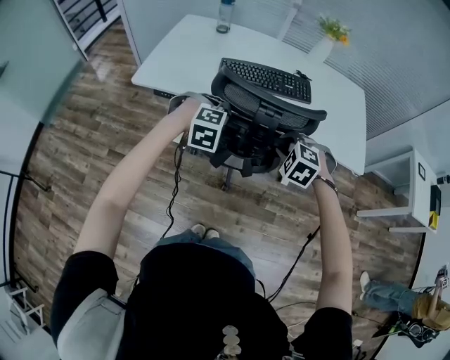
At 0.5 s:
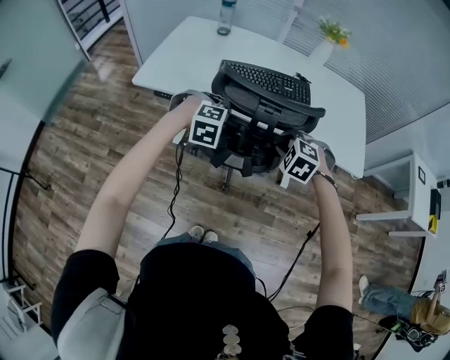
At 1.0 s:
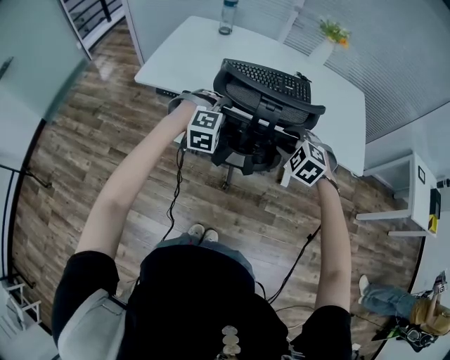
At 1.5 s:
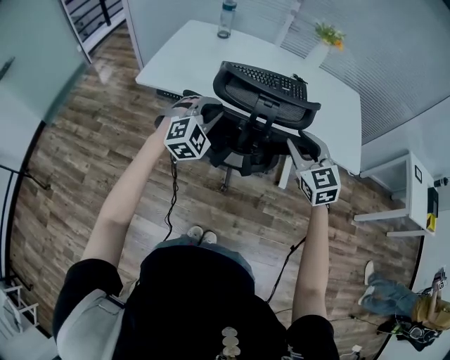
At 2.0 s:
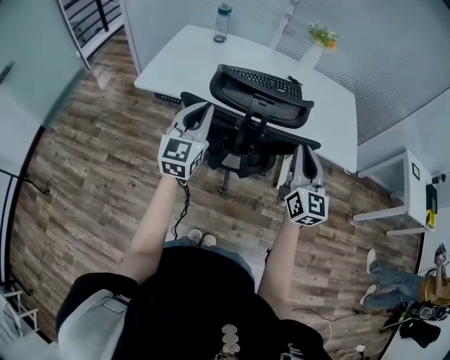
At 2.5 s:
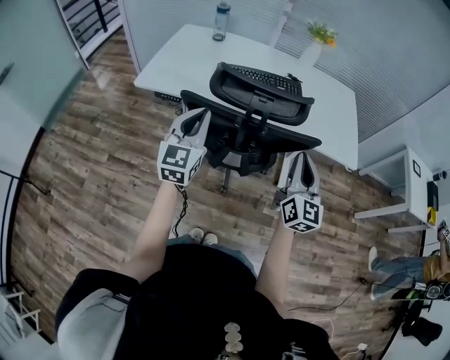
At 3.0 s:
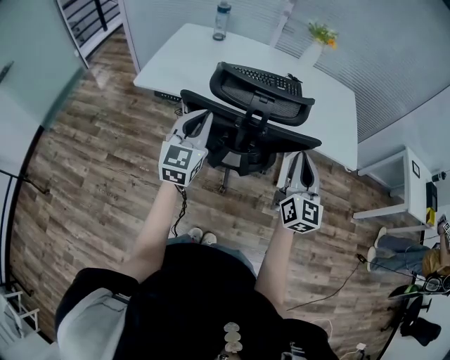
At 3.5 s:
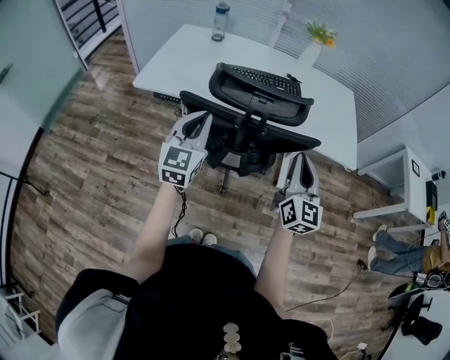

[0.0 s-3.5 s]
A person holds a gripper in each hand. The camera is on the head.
0.0 to 2.0 s: The left gripper heads upward, covering some 15 cm, and tilts its fingers roughly 60 degrees upward, while the right gripper shifts roughly 15 cm upward and backward, angles its fingers upward, by roughly 70 degrees, and opens, then closes again.
2.0 to 3.5 s: The grippers make only small movements.

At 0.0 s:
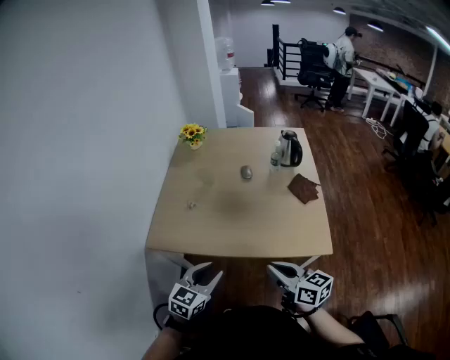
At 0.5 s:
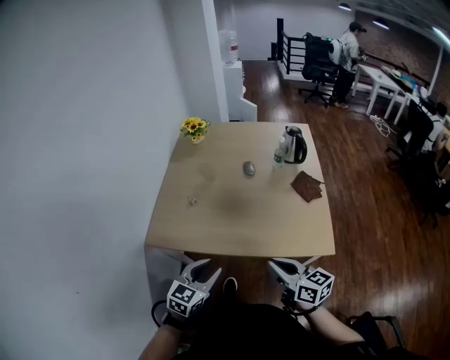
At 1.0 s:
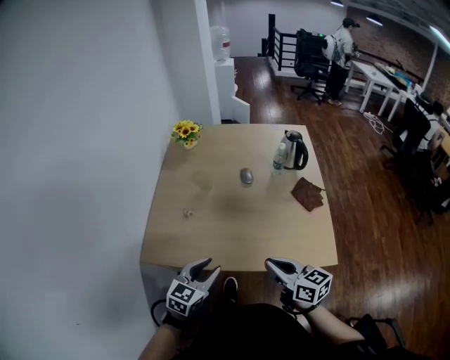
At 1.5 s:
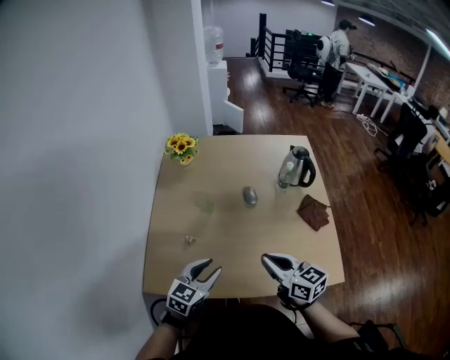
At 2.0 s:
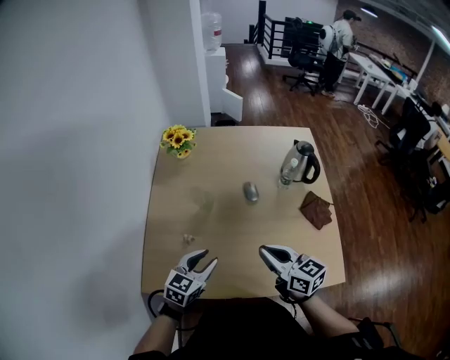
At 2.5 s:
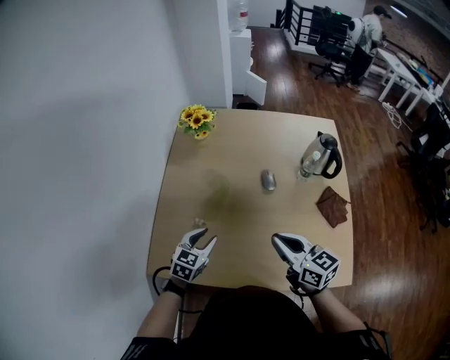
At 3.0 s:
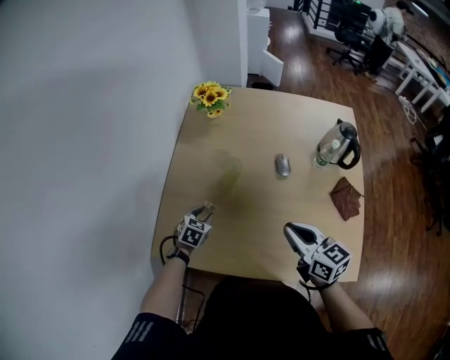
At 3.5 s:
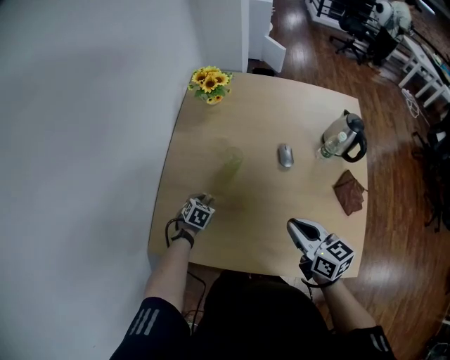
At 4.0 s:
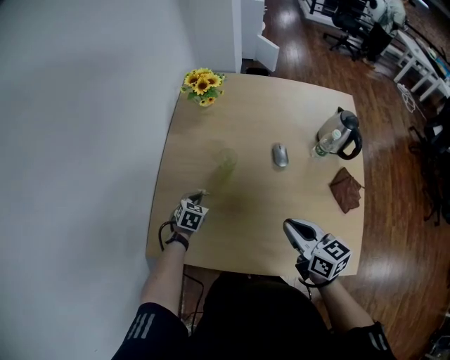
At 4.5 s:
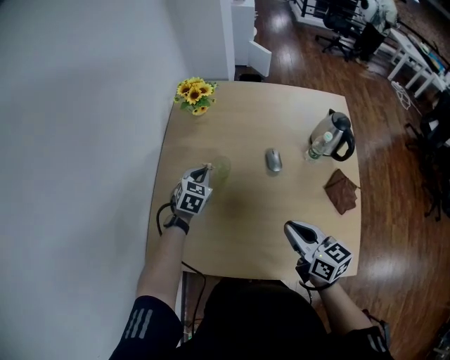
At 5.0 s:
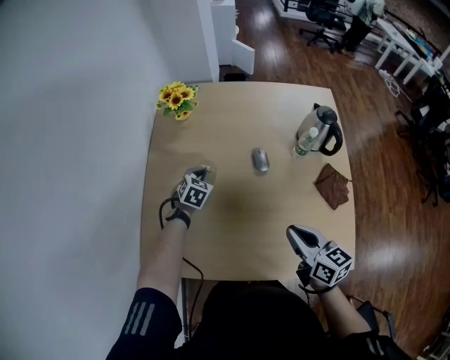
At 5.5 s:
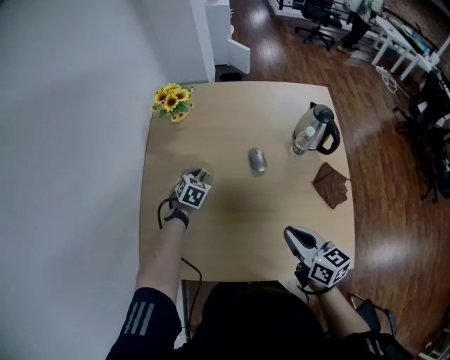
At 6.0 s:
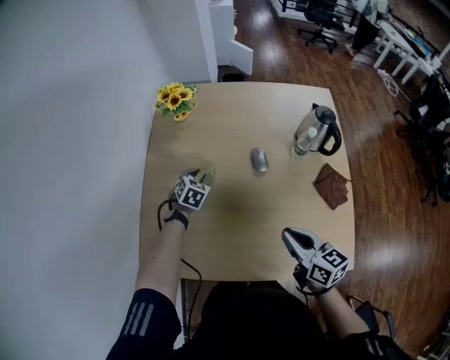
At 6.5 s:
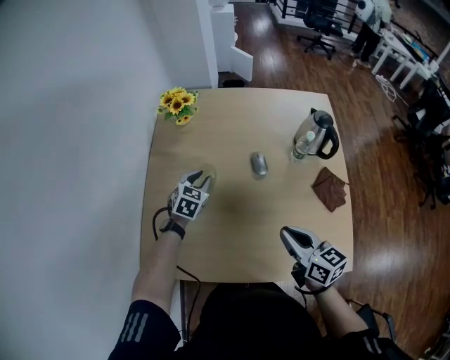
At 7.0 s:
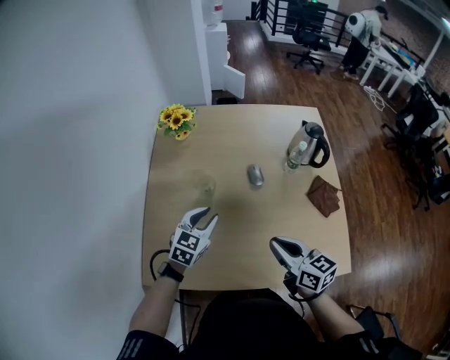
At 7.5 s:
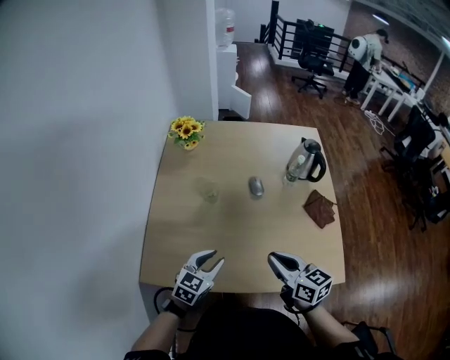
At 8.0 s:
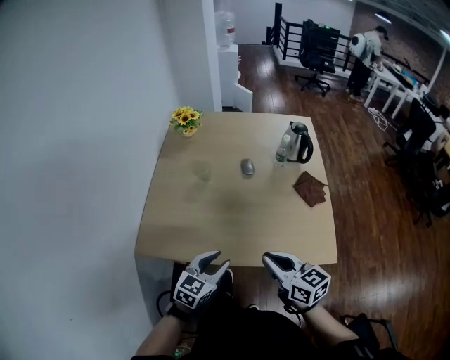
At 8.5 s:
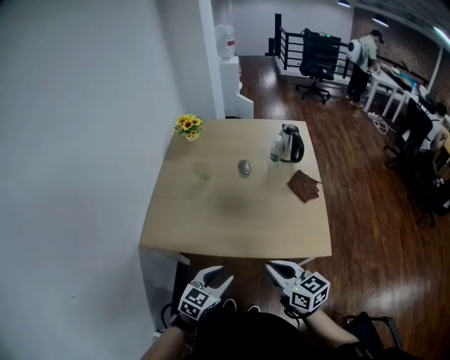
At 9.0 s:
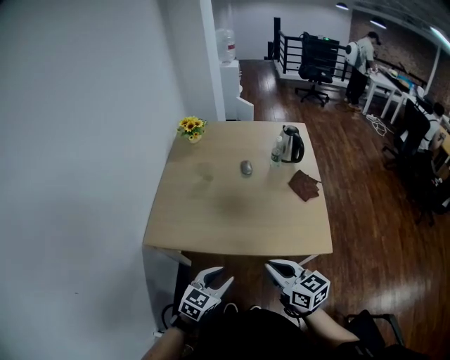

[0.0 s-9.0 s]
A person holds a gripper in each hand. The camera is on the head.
0.0 to 2.0 s: Both grippers move forward, about 30 cm.
2.0 to 4.5 s: The left gripper goes roughly 25 cm forward, swivels approximately 30 degrees, and closes, while the right gripper moves about 5 cm.
4.5 to 7.0 s: The left gripper travels backward, upward and to the right by about 15 cm, and opens.
7.0 to 9.0 s: Both grippers move backward, roughly 35 cm.

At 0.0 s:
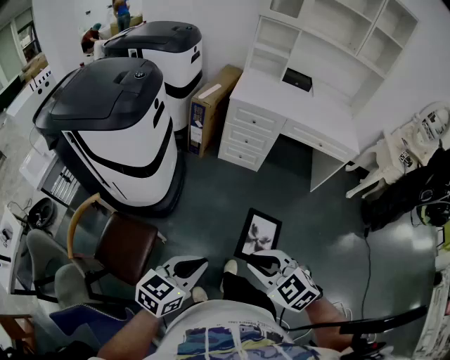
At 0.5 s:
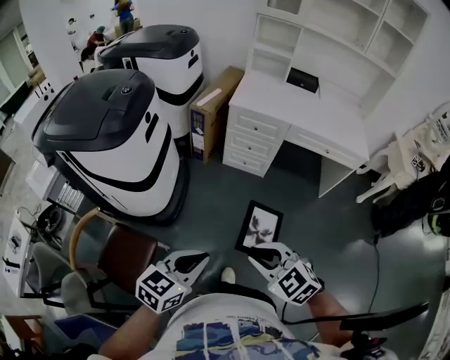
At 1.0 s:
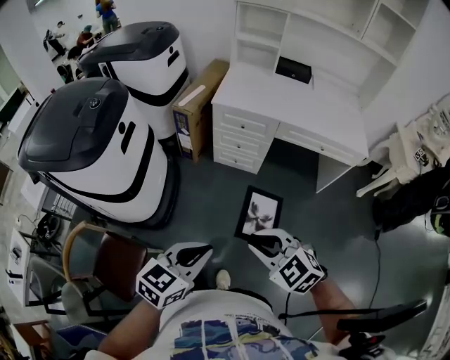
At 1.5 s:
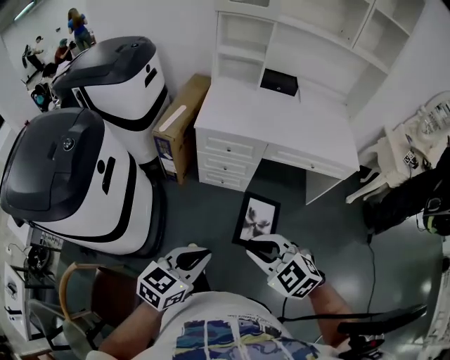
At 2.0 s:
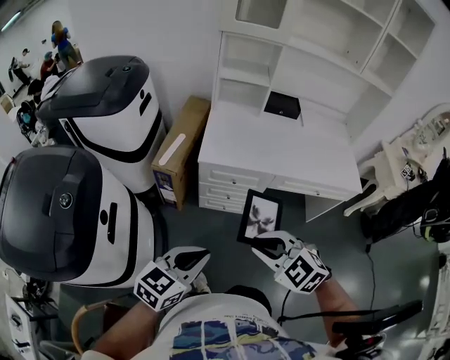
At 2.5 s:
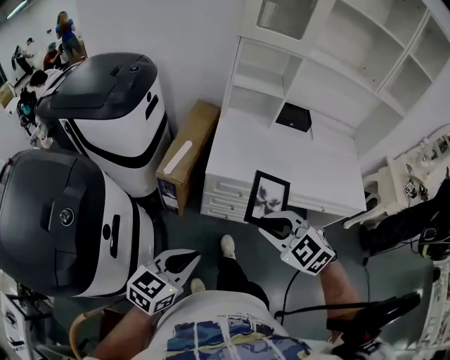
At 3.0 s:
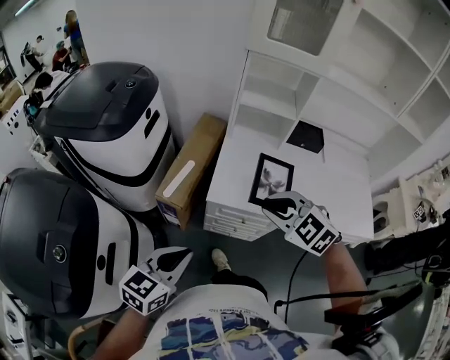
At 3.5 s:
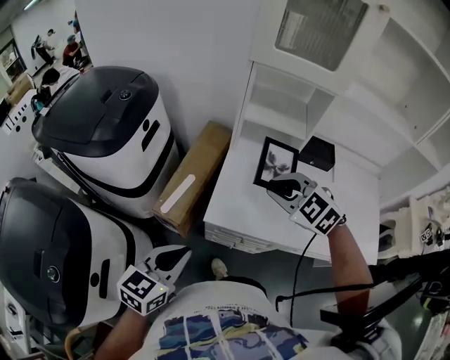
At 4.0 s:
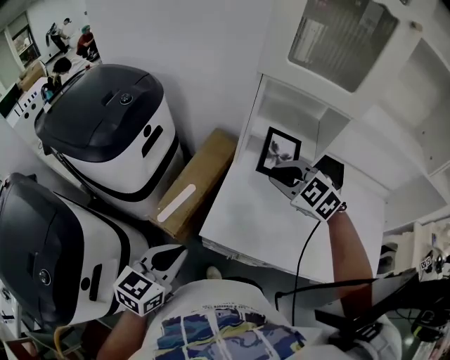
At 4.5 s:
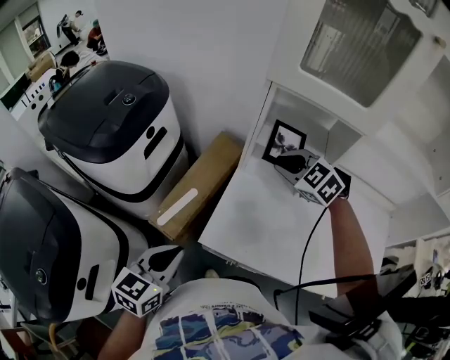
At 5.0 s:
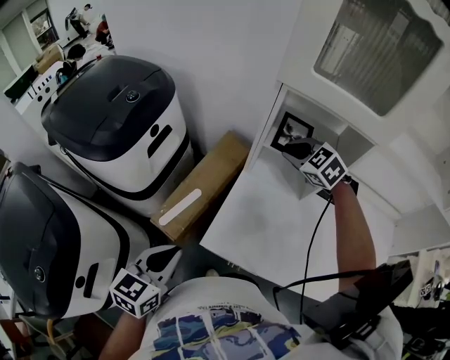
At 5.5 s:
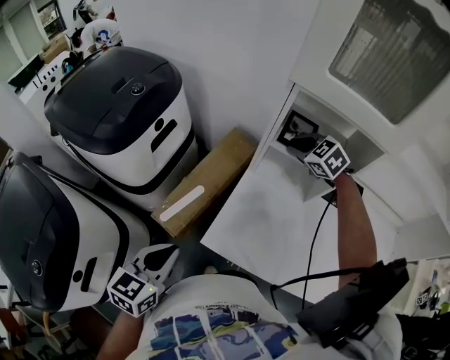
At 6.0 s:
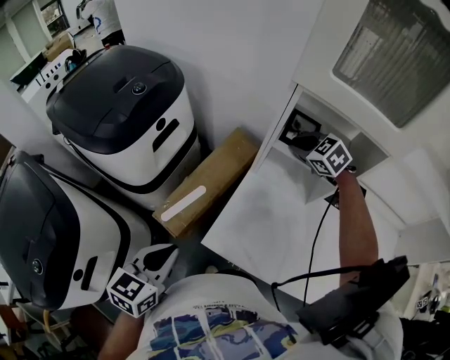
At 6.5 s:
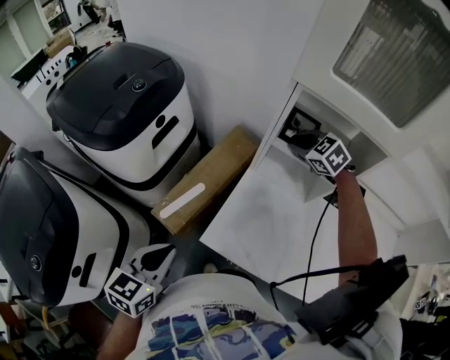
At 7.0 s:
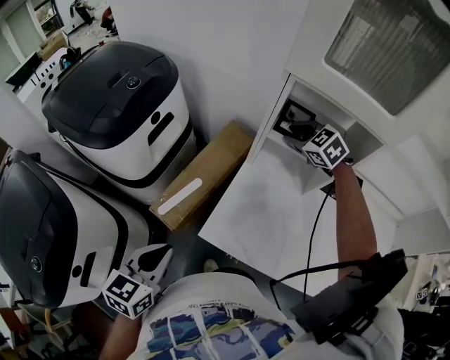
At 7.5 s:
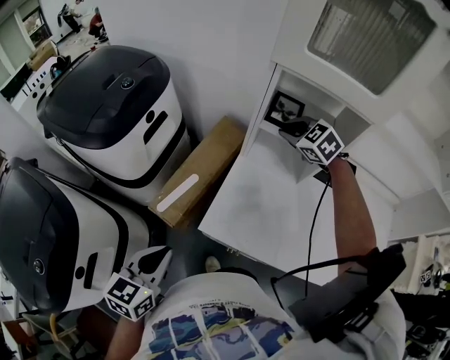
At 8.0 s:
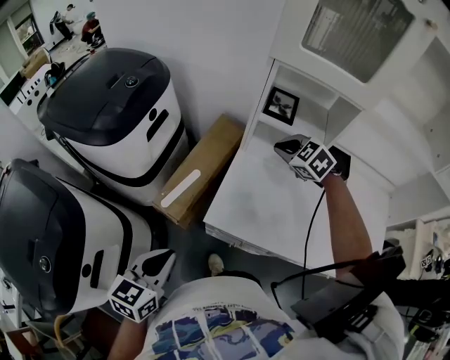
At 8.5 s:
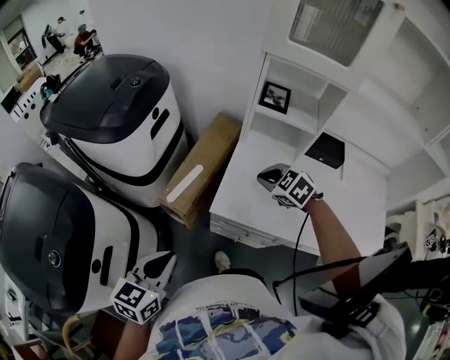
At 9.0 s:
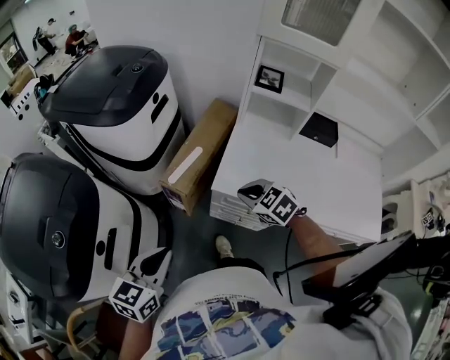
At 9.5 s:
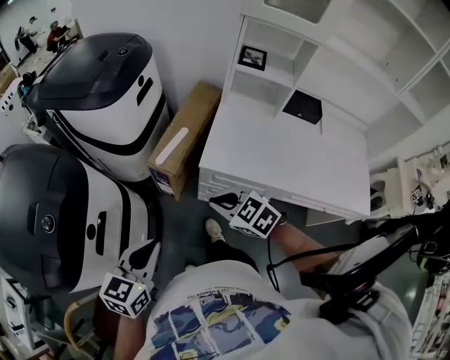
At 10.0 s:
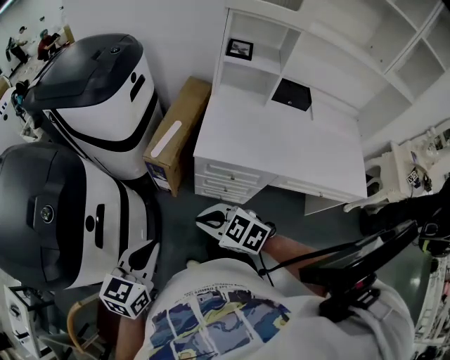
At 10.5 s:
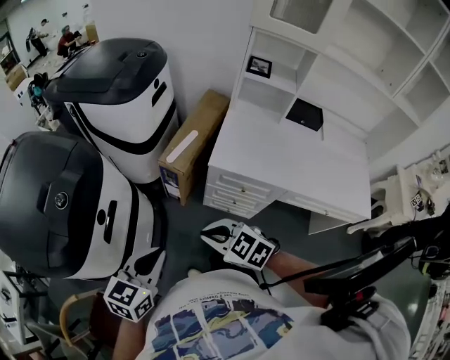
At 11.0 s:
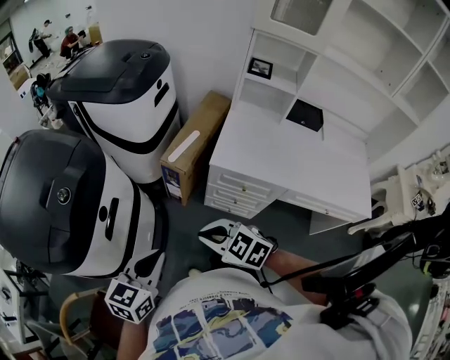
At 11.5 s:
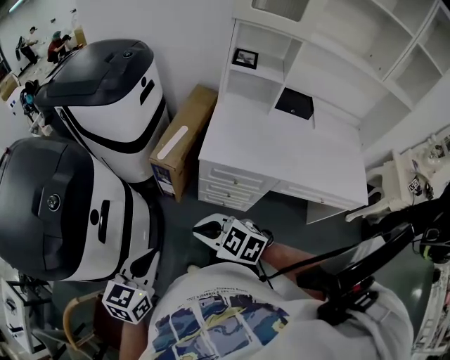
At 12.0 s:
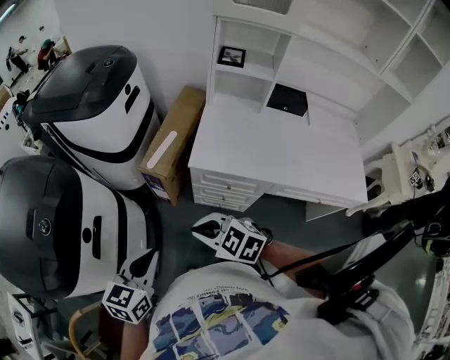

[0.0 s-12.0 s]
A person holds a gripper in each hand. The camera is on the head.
0.0 to 2.0 s: The two grippers travel together, forward, some 50 cm.
2.0 to 4.0 s: The left gripper travels forward by about 35 cm, and swivels roughly 30 degrees. The right gripper travels forward by roughly 60 cm.
4.0 to 6.0 s: The left gripper moves approximately 5 cm, while the right gripper goes some 20 cm forward.
6.0 to 8.0 s: Both grippers move backward, about 10 cm.
8.0 to 10.0 s: The left gripper heads backward and to the left, covering approximately 20 cm. Meanwhile the right gripper heads backward and to the left, covering some 50 cm, and rotates about 20 degrees.
10.0 to 12.0 s: The grippers move only a little.

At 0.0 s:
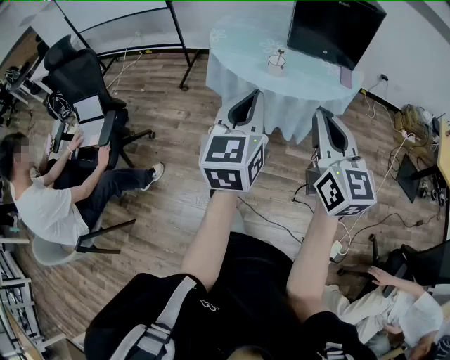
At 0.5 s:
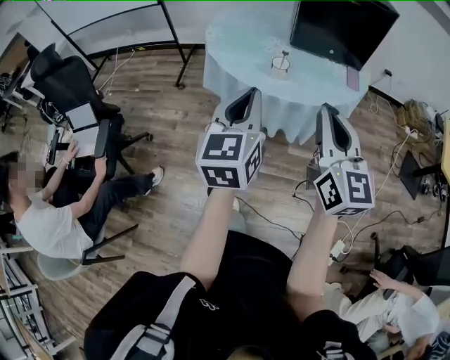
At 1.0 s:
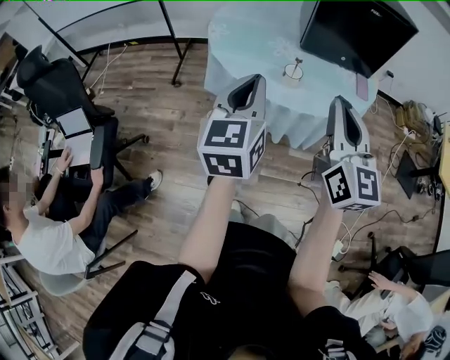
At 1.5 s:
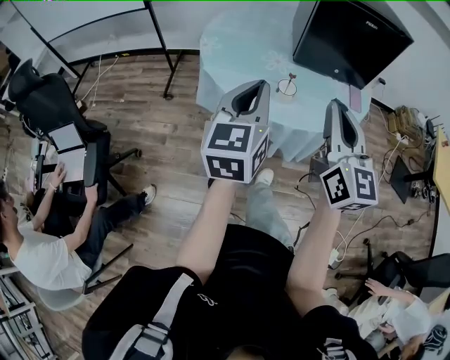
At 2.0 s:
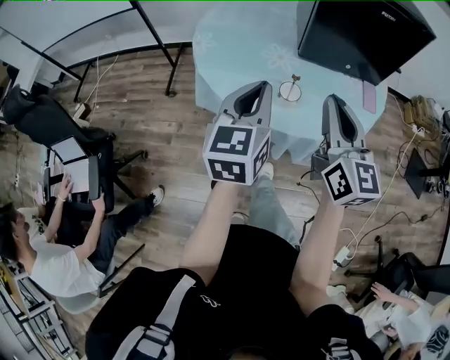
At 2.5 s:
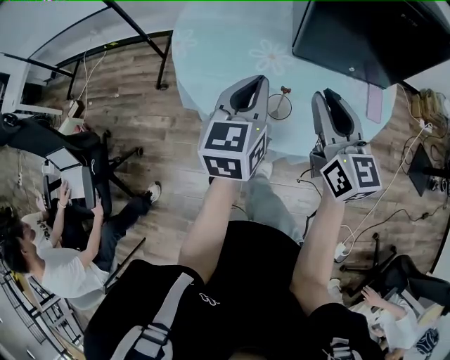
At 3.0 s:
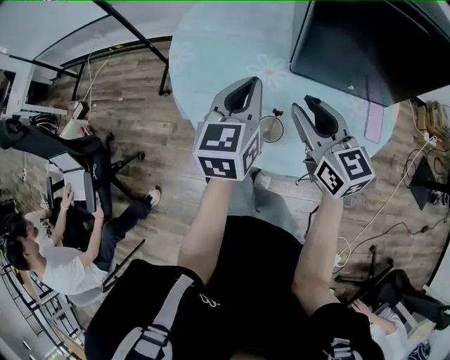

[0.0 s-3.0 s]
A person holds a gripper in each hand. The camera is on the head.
0.0 to 1.5 s: The grippers both shift forward by approximately 25 cm.
1.5 to 3.0 s: The two grippers go roughly 30 cm forward and downward. The right gripper turns by approximately 30 degrees, and opens.
